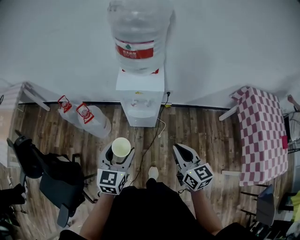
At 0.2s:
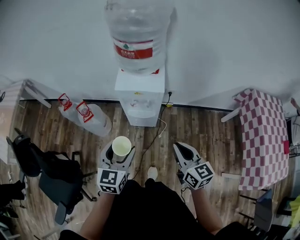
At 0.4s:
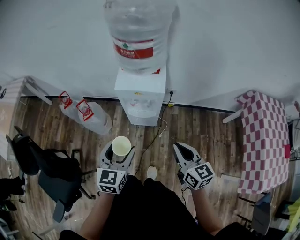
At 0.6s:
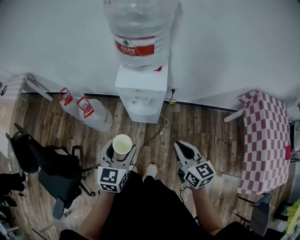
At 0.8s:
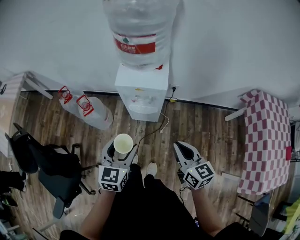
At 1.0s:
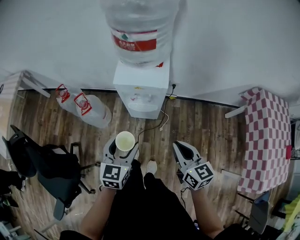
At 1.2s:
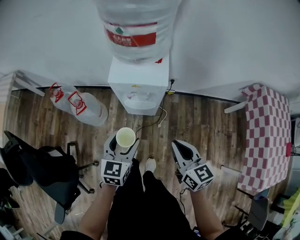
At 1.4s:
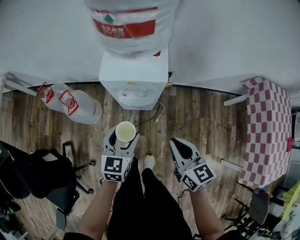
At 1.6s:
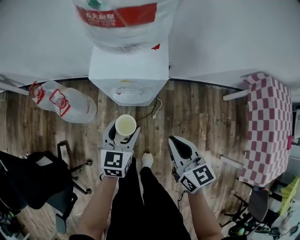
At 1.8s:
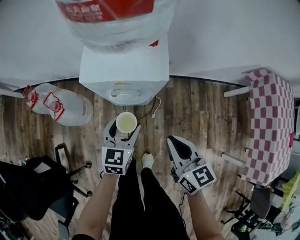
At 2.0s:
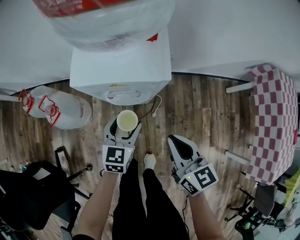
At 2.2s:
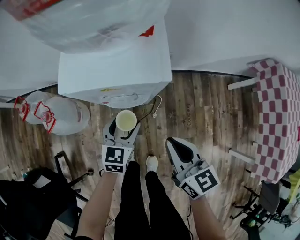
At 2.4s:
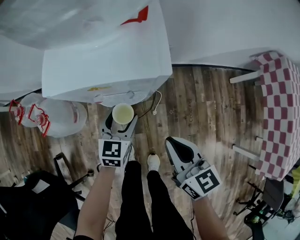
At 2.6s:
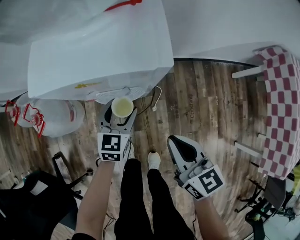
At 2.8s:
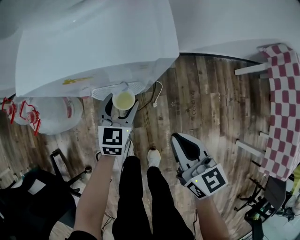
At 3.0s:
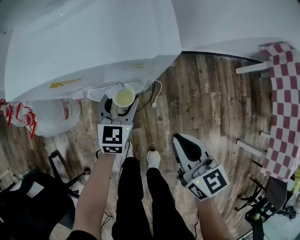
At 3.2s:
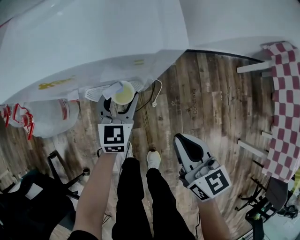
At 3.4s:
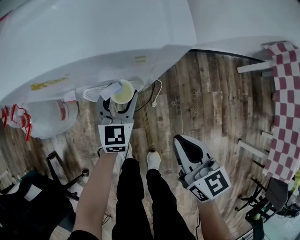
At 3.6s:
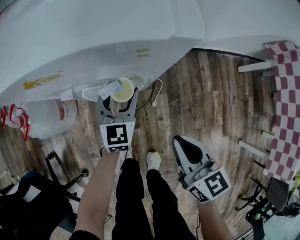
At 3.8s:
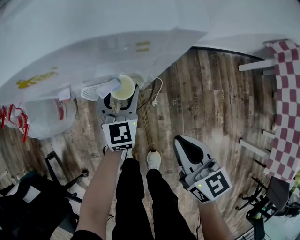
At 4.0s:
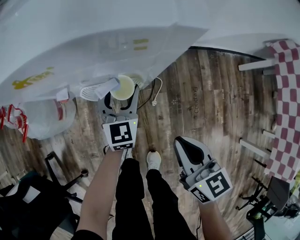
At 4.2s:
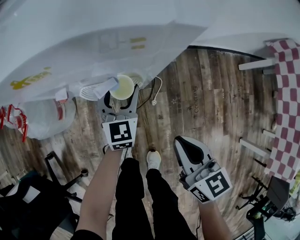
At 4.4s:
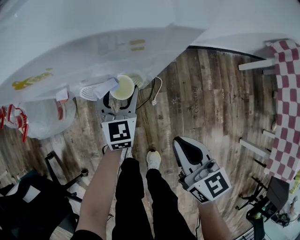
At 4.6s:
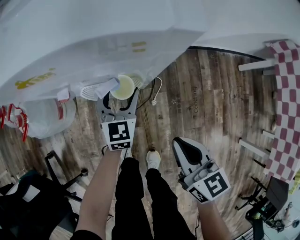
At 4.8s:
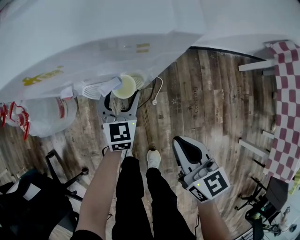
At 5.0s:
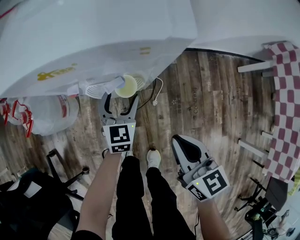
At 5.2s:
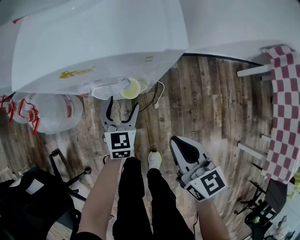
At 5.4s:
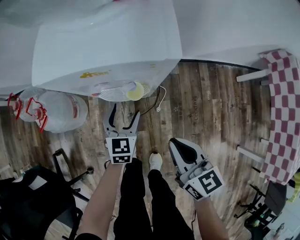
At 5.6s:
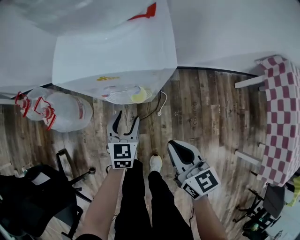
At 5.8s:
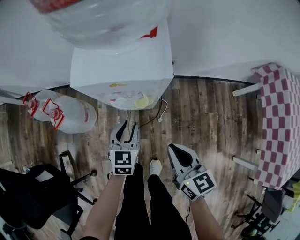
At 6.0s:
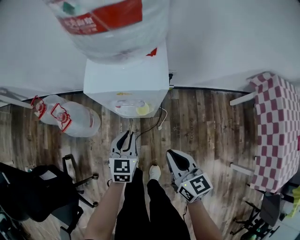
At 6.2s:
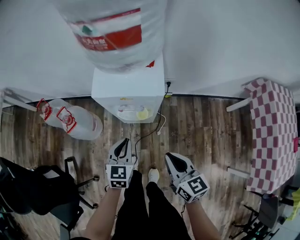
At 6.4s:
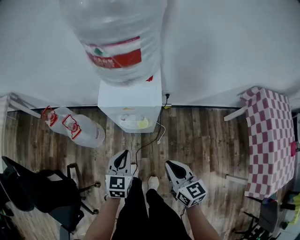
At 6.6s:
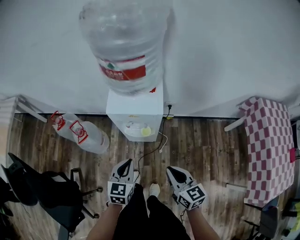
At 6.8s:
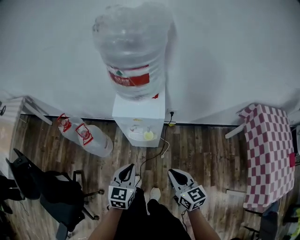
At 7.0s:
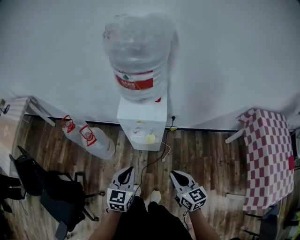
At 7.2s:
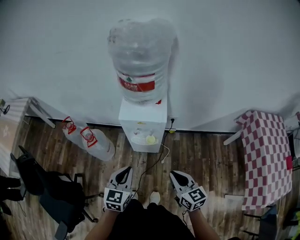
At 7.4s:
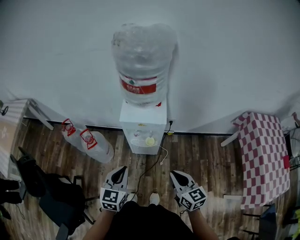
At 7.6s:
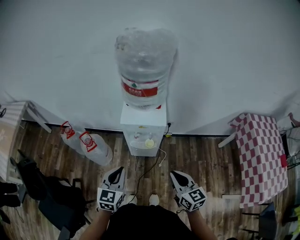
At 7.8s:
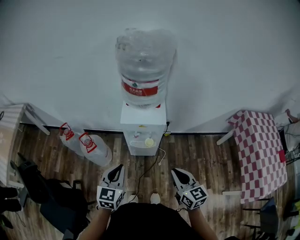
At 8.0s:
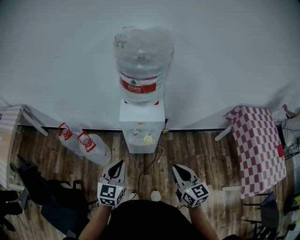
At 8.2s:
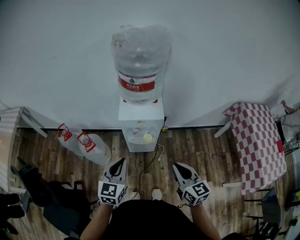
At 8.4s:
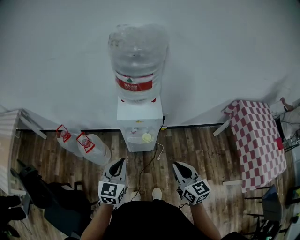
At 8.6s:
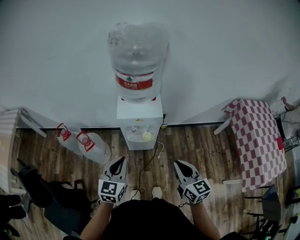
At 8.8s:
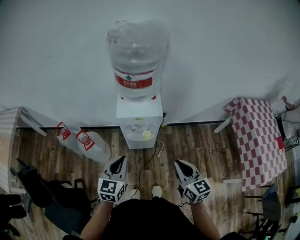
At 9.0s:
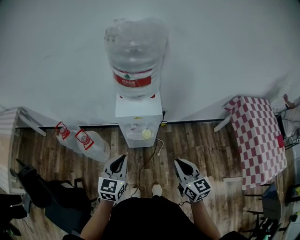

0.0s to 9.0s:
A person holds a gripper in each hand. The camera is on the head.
0.0s to 1.6s: The left gripper goes about 25 cm downward and forward. Meanwhile the right gripper moves forward and downward, approximately 20 cm.
1.6s to 3.0s: The left gripper shifts approximately 25 cm downward and forward, while the right gripper goes about 20 cm downward.
3.0s to 4.4s: The right gripper shifts by about 5 cm.
4.4s to 6.0s: The right gripper moves upward, about 20 cm, while the left gripper goes roughly 25 cm upward and backward, and closes its fingers.
6.0s to 7.6s: Both grippers travel together upward and backward, about 25 cm.
7.6s to 9.0s: There are only small adjustments of the grippers.

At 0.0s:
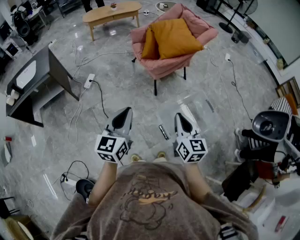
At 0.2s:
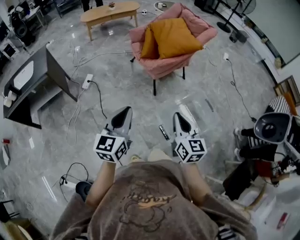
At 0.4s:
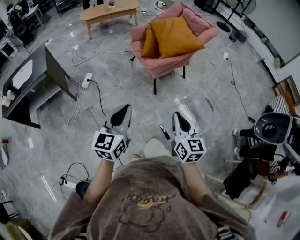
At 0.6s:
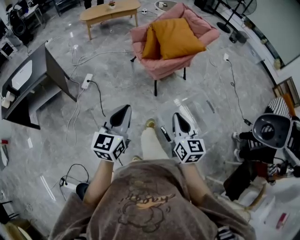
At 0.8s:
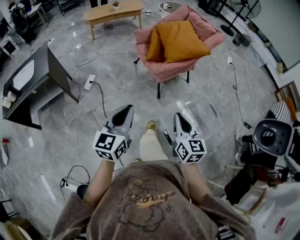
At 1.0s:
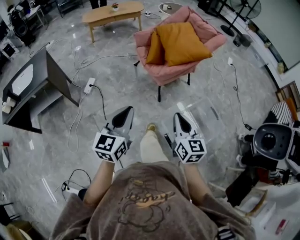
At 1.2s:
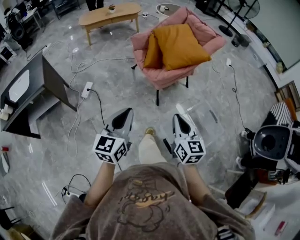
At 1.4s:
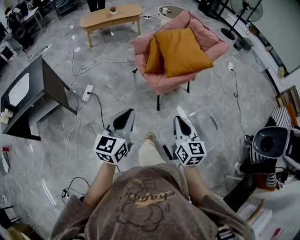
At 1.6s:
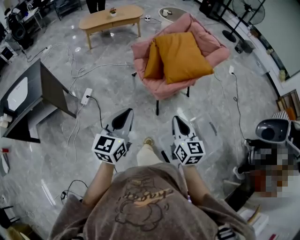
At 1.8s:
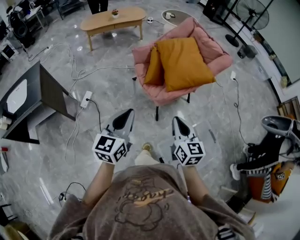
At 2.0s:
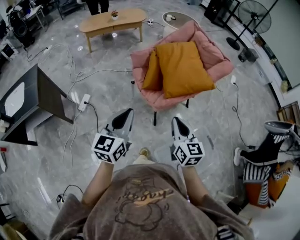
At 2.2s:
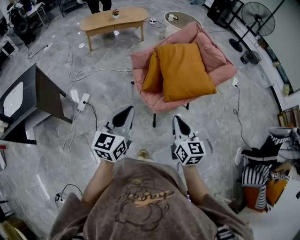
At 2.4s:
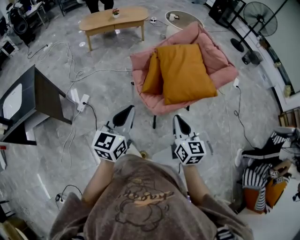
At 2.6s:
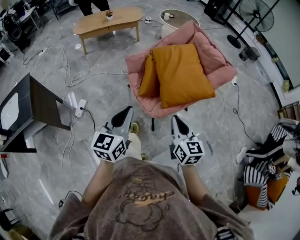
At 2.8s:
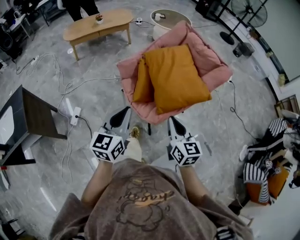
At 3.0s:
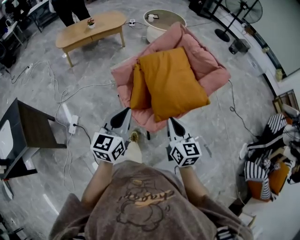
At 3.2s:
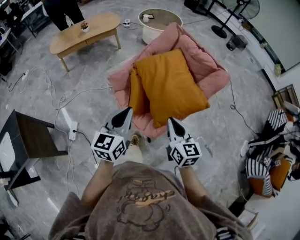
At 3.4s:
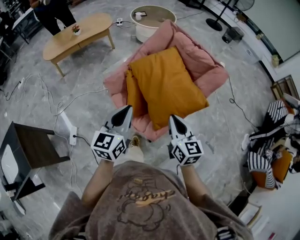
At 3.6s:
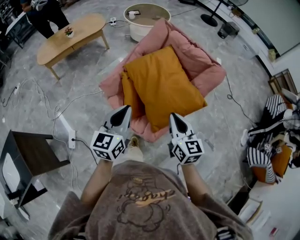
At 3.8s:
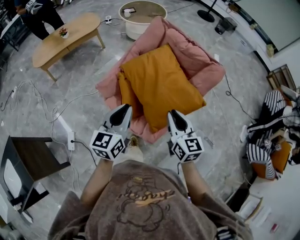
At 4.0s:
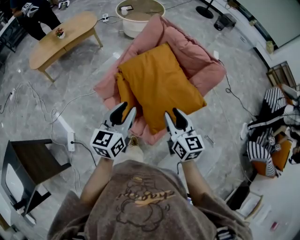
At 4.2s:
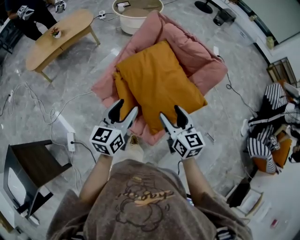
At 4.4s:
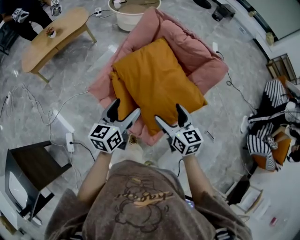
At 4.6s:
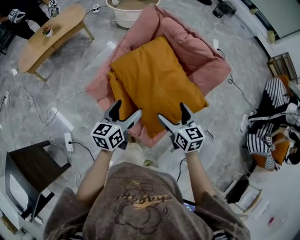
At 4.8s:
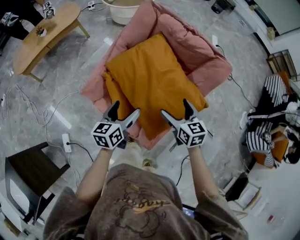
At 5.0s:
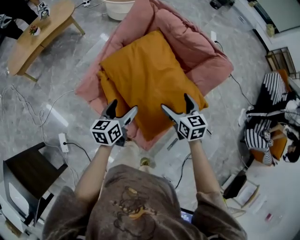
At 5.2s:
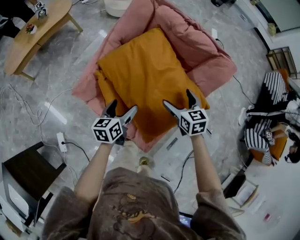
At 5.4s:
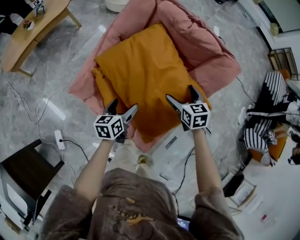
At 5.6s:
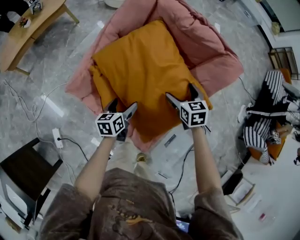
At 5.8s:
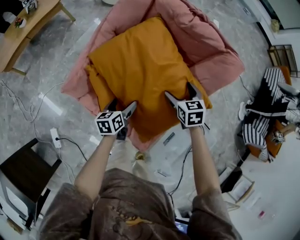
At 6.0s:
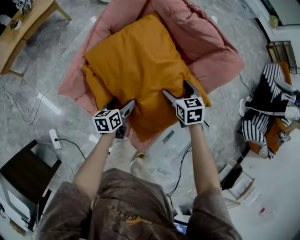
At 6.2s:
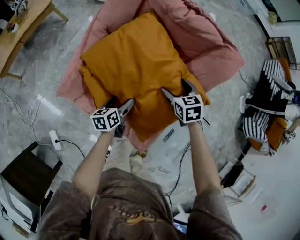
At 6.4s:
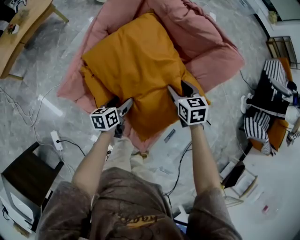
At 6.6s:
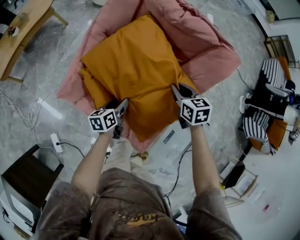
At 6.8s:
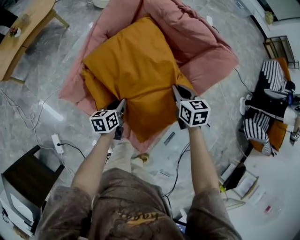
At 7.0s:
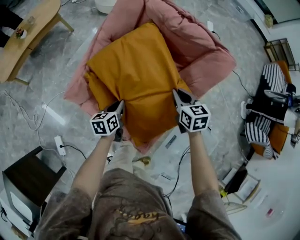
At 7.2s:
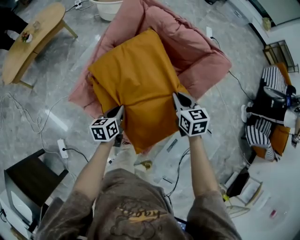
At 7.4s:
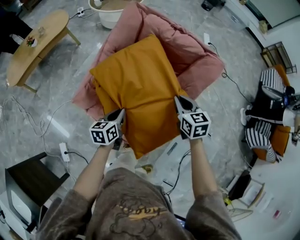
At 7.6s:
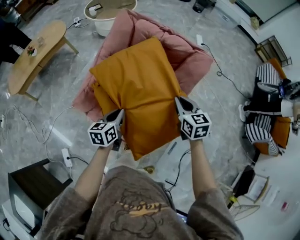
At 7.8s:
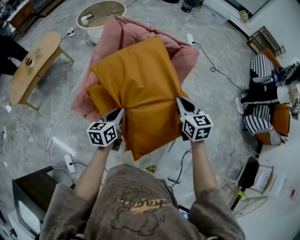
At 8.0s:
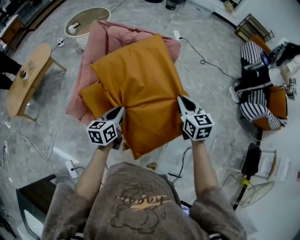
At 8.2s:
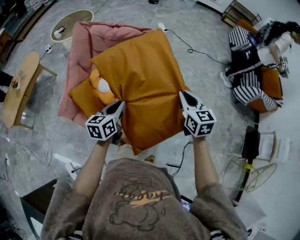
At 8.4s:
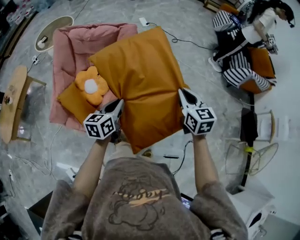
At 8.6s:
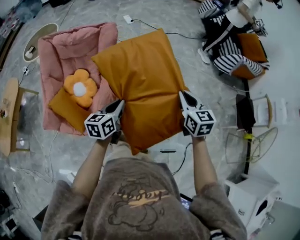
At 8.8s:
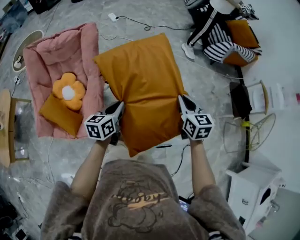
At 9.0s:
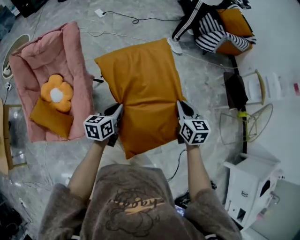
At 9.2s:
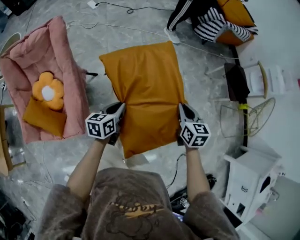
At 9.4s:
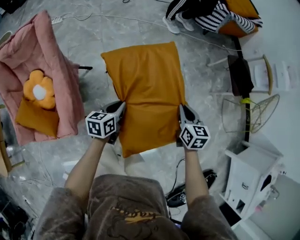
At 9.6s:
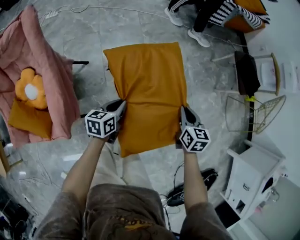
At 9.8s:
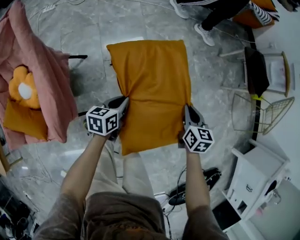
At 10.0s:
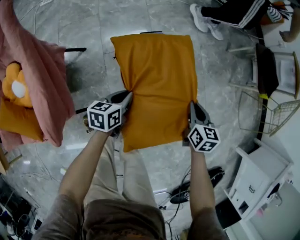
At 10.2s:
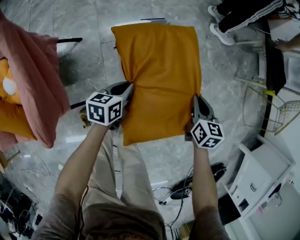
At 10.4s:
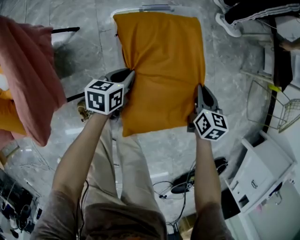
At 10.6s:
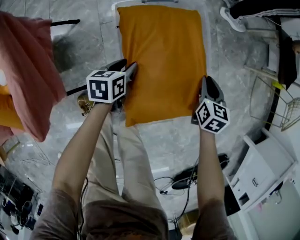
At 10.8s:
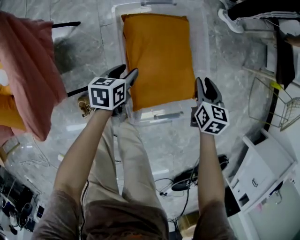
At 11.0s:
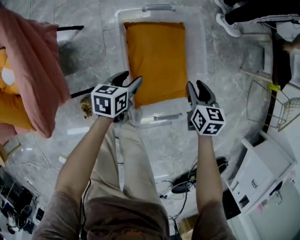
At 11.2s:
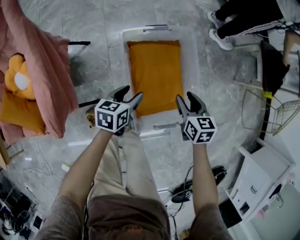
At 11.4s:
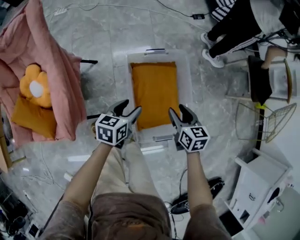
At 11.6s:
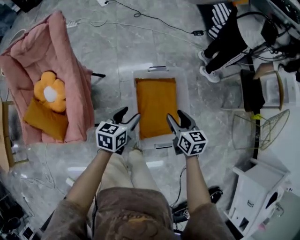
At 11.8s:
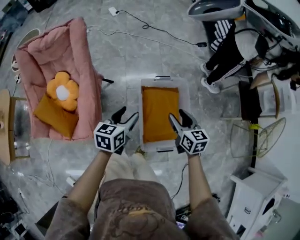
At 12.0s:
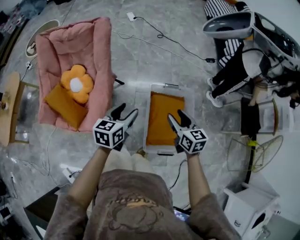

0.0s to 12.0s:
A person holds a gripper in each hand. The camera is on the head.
0.0s to 1.6s: Both grippers move forward, approximately 25 cm.
1.6s to 3.0s: The two grippers go about 35 cm forward.
3.0s to 4.4s: The two grippers go approximately 25 cm forward. The right gripper opens up, while the left gripper rotates some 20 degrees, and opens up.
4.4s to 6.0s: The right gripper heads downward, forward and to the right, covering some 30 cm, and rotates some 30 degrees; the left gripper shifts about 35 cm downward, and rotates approximately 30 degrees.
6.0s to 7.6s: The left gripper goes about 20 cm upward, and closes its fingers. Meanwhile the right gripper travels upward and backward by about 25 cm, changes its angle by some 20 degrees, and closes its fingers.
7.6s to 9.0s: The two grippers travel together, approximately 60 cm. The right gripper swivels about 50 degrees. Meanwhile the left gripper changes its angle by some 50 degrees.
9.0s to 10.4s: The two grippers go some 50 cm downward.
10.4s to 12.0s: Both grippers travel together upward, some 50 cm. The left gripper swivels some 30 degrees, and opens its fingers. The right gripper swivels about 40 degrees, and opens its fingers.

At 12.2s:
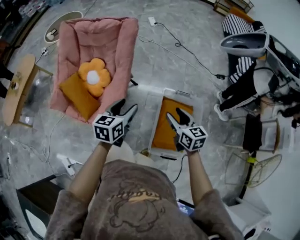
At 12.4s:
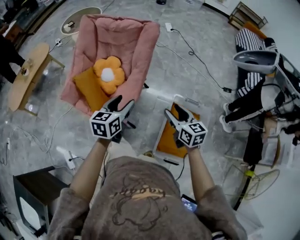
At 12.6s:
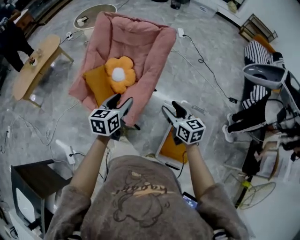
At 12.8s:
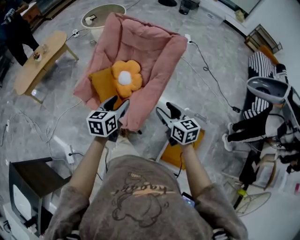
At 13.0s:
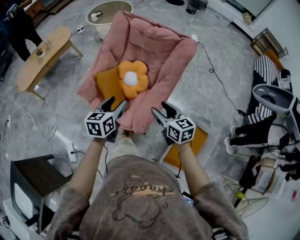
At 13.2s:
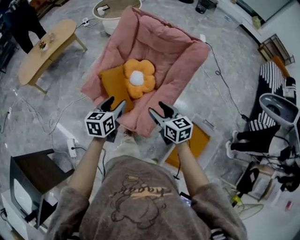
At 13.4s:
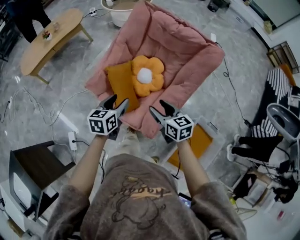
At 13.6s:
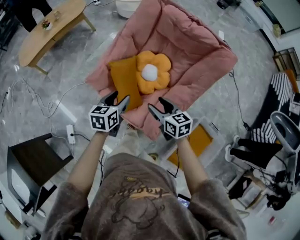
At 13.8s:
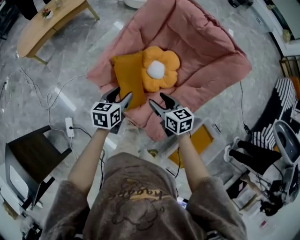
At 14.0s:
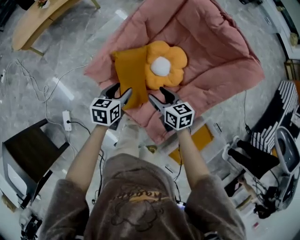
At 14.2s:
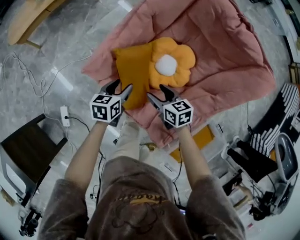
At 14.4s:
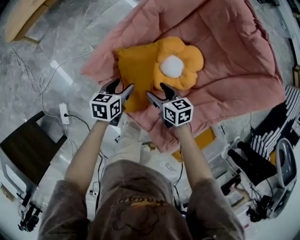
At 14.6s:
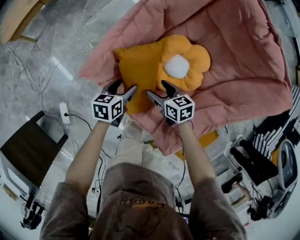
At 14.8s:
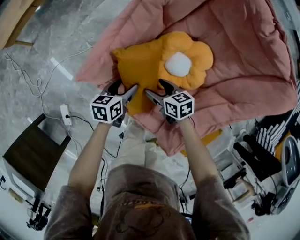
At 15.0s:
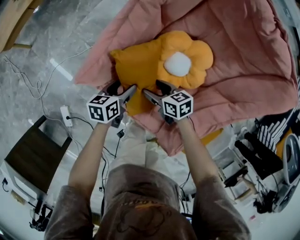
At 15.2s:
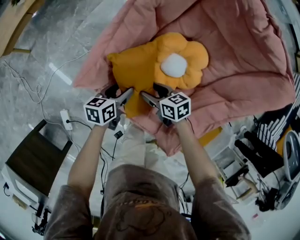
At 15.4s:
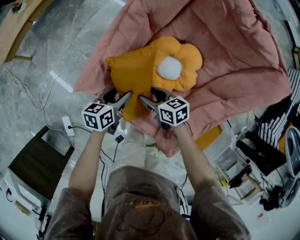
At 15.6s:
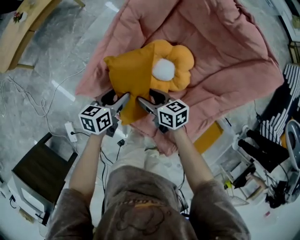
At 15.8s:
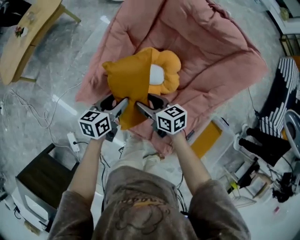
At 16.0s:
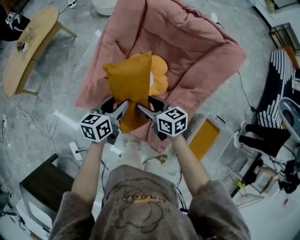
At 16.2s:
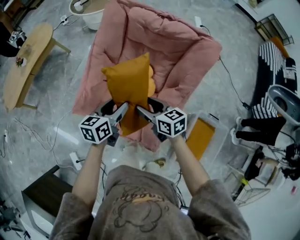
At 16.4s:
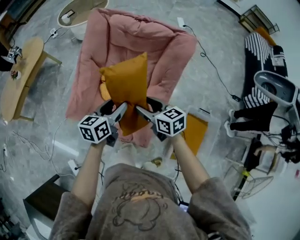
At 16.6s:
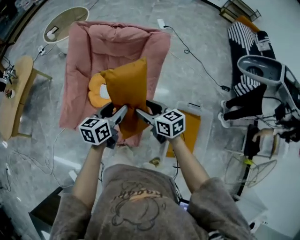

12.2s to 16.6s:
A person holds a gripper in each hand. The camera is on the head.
12.2s to 13.6s: The pair of grippers is taken some 50 cm. The right gripper swivels approximately 40 degrees; the left gripper changes its angle by approximately 30 degrees.
13.6s to 15.2s: Both grippers travel together downward and forward, some 35 cm. The right gripper changes its angle by about 20 degrees.
15.2s to 16.6s: The grippers both shift upward by about 40 cm. The left gripper swivels approximately 30 degrees. The right gripper rotates about 40 degrees.
